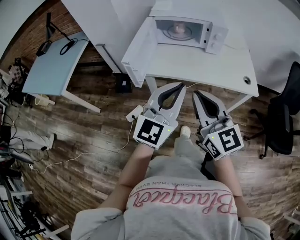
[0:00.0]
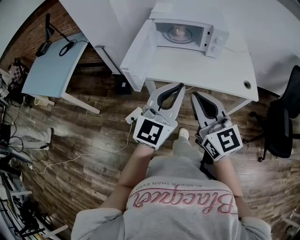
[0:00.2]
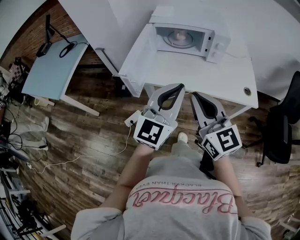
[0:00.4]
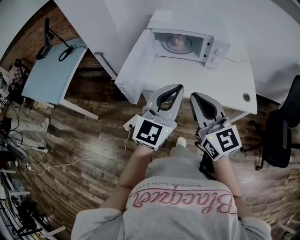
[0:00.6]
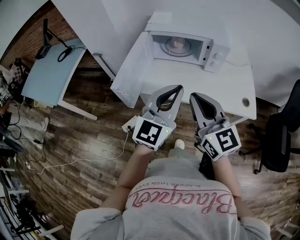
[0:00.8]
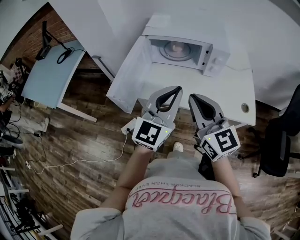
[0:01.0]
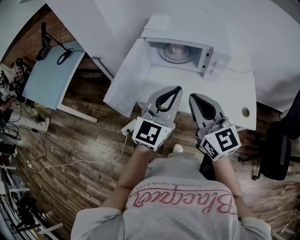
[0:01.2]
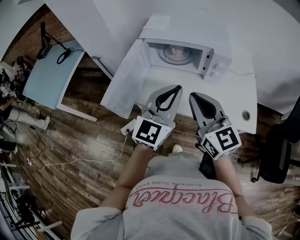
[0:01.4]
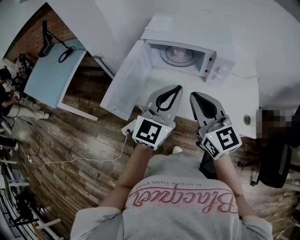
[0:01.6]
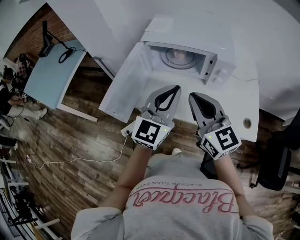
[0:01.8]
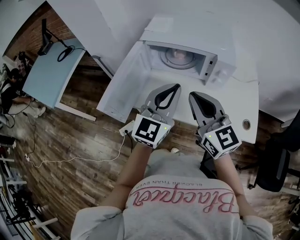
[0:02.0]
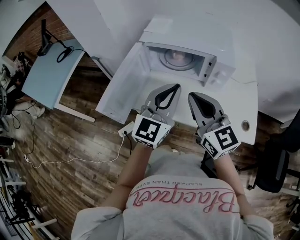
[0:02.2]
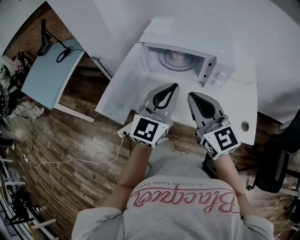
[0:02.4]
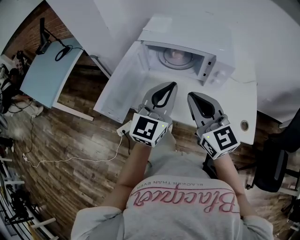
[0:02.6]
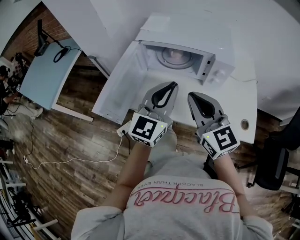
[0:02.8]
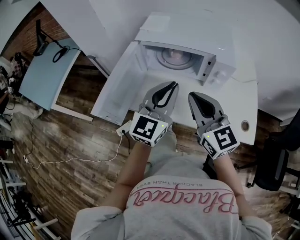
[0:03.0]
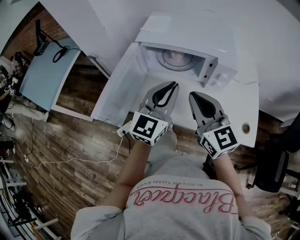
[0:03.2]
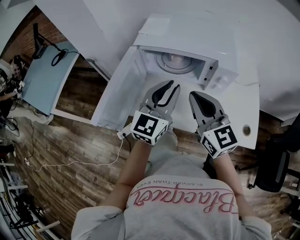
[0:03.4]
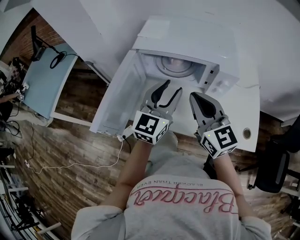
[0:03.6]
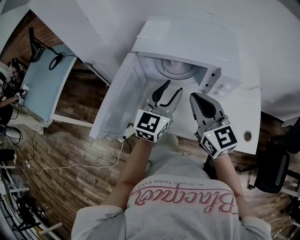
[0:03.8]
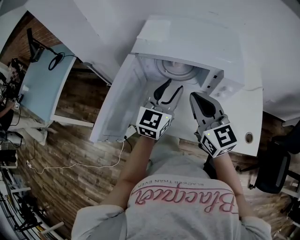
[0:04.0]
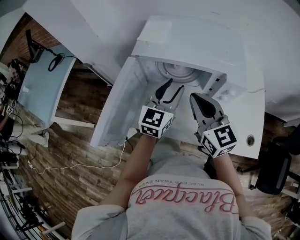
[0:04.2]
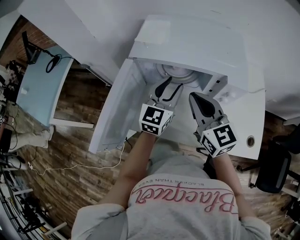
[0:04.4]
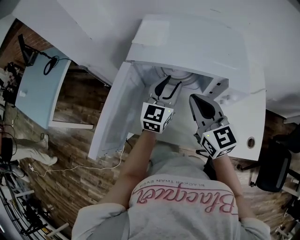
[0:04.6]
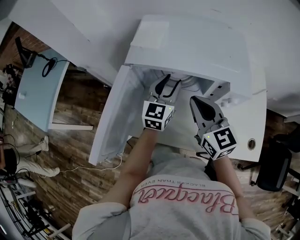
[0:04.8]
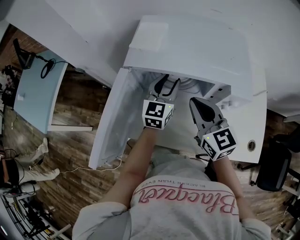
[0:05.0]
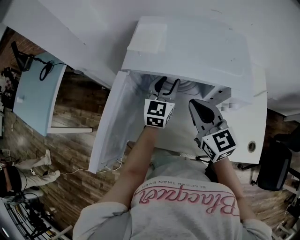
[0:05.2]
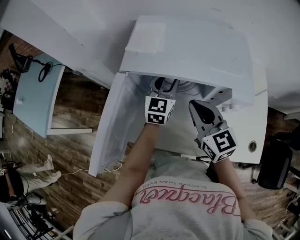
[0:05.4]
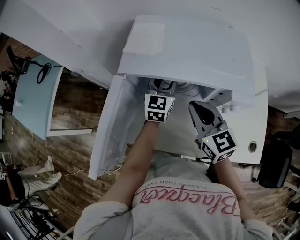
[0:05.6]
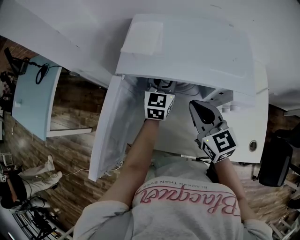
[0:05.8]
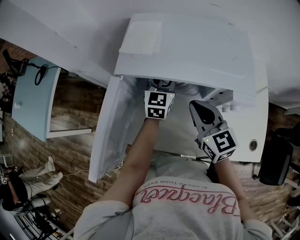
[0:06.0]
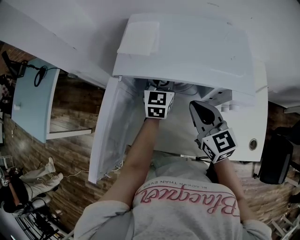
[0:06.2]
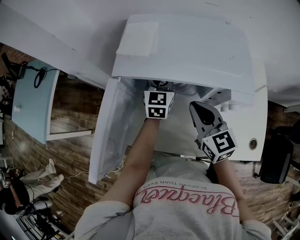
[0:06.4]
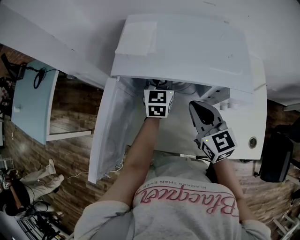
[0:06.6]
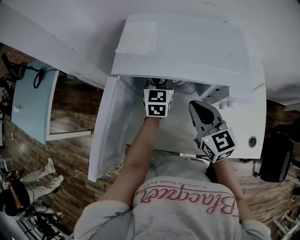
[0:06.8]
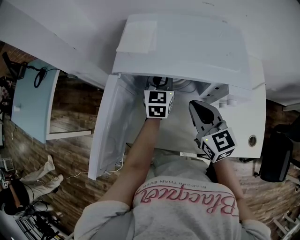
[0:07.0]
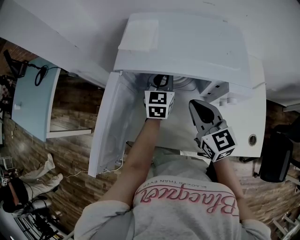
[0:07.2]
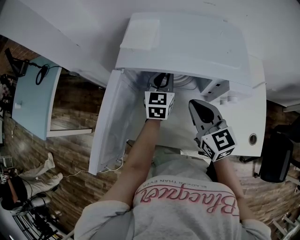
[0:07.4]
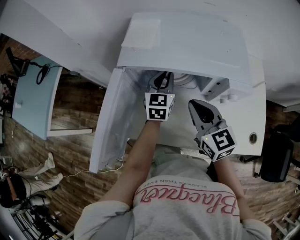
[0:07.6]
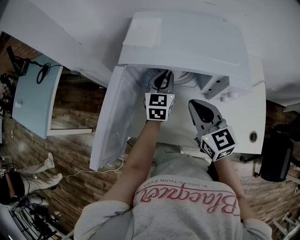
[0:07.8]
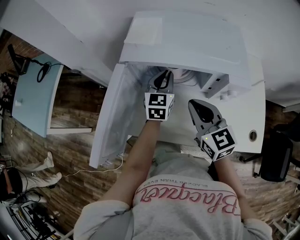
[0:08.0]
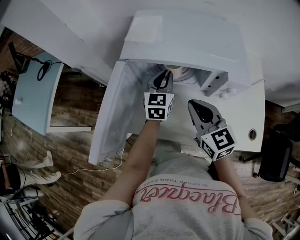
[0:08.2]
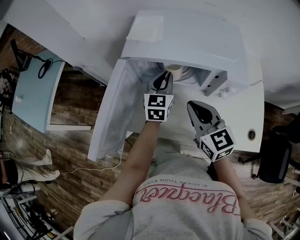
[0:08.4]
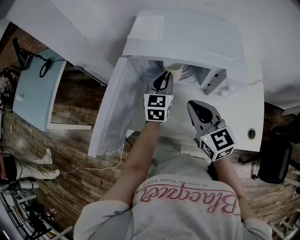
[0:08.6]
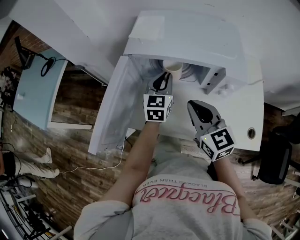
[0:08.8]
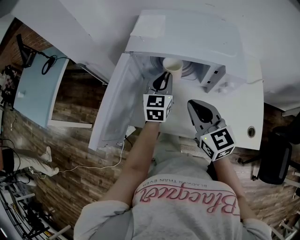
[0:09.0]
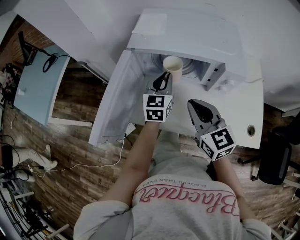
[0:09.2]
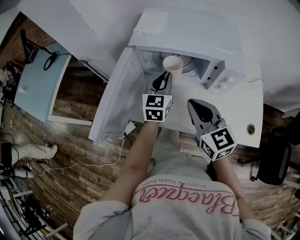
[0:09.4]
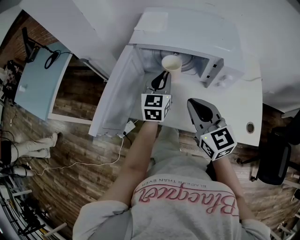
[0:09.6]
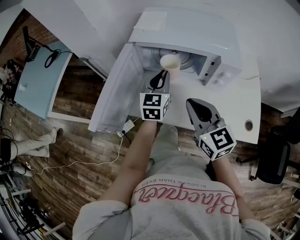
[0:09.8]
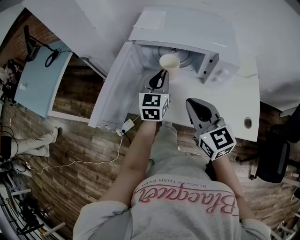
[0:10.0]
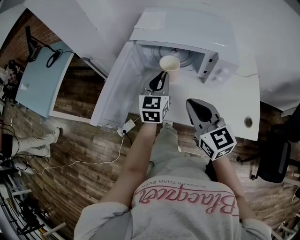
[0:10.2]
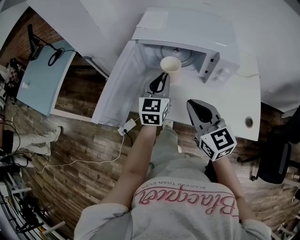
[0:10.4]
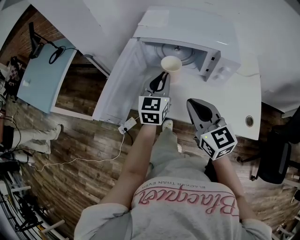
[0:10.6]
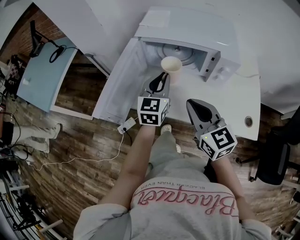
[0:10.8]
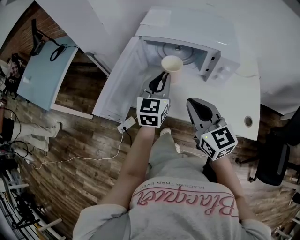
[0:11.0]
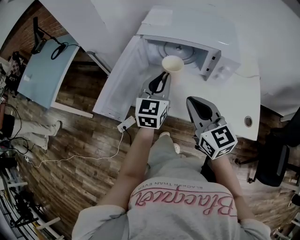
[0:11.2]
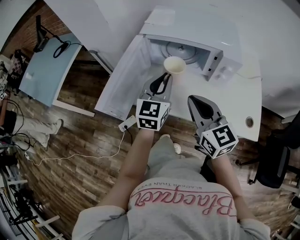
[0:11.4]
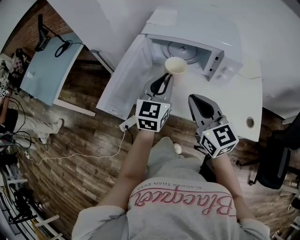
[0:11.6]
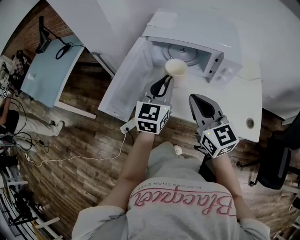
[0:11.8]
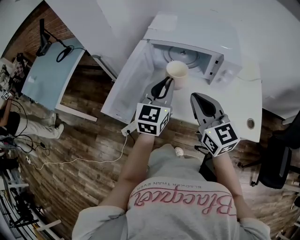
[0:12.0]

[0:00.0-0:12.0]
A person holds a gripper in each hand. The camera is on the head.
0:00.0 to 0:01.6: Both grippers move forward, roughly 25 cm.
0:01.6 to 0:03.0: The left gripper shifts about 5 cm forward.
0:03.0 to 0:04.4: The right gripper shifts roughly 15 cm forward, while the left gripper heads forward and downward, covering some 20 cm, and opens its fingers.
0:04.4 to 0:06.0: The right gripper travels downward and forward by about 10 cm. The left gripper moves forward and downward, roughly 15 cm.
0:06.0 to 0:07.6: The left gripper closes up.
0:07.6 to 0:09.0: Both grippers travel together backward, some 5 cm.
0:09.0 to 0:10.4: The grippers both shift backward by roughly 10 cm.
0:10.4 to 0:12.0: The left gripper heads backward and upward, covering about 10 cm.

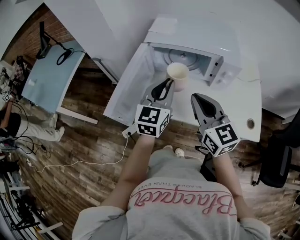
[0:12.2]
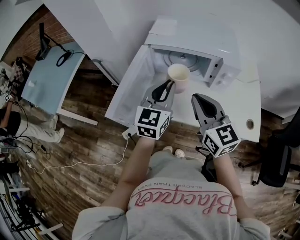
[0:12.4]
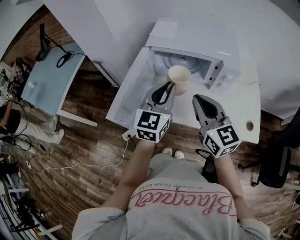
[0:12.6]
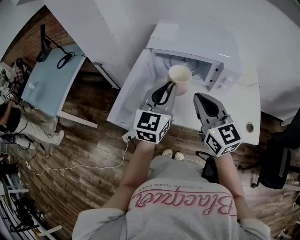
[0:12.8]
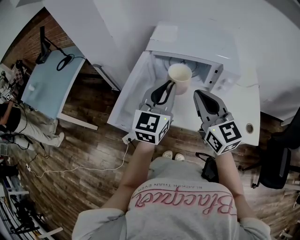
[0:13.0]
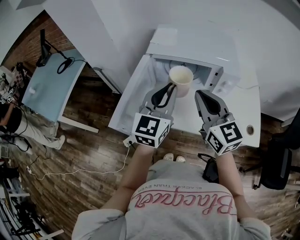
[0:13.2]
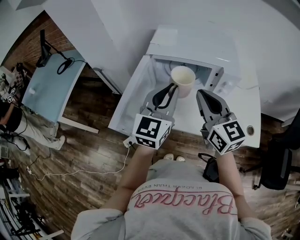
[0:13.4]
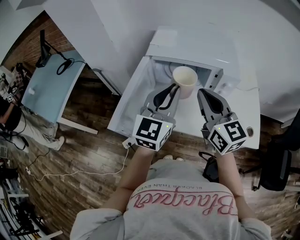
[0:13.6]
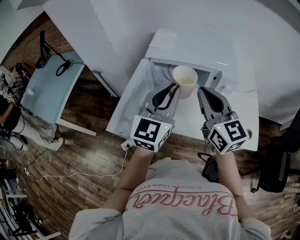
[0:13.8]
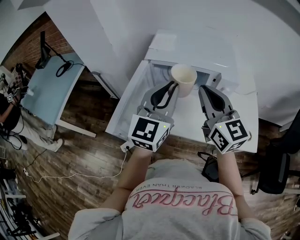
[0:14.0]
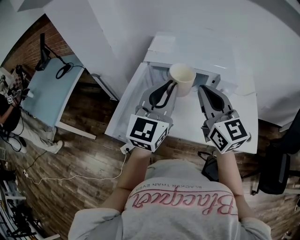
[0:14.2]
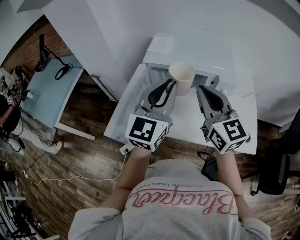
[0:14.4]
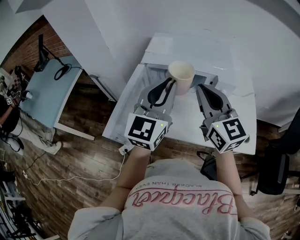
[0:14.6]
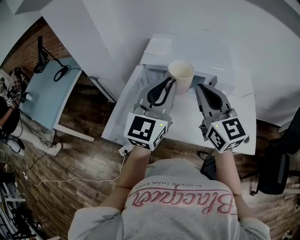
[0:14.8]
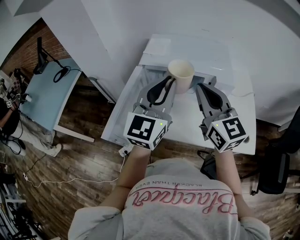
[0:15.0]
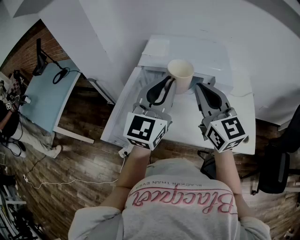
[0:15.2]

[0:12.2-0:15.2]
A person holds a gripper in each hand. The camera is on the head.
0:12.2 to 0:13.8: Both grippers travel together upward, about 10 cm.
0:13.8 to 0:15.2: The left gripper moves roughly 5 cm.

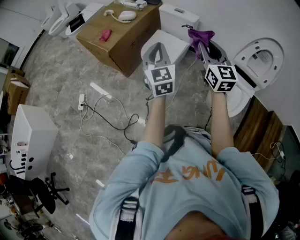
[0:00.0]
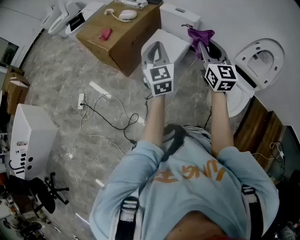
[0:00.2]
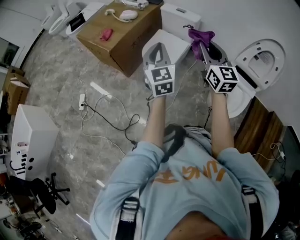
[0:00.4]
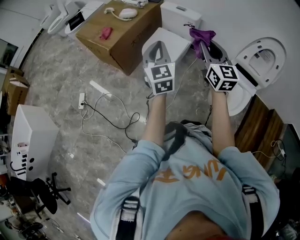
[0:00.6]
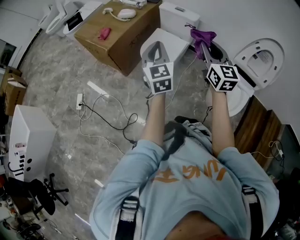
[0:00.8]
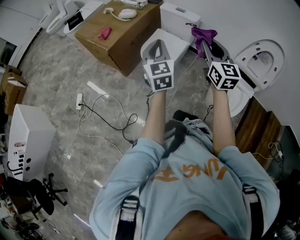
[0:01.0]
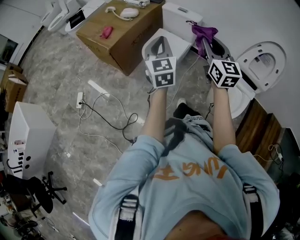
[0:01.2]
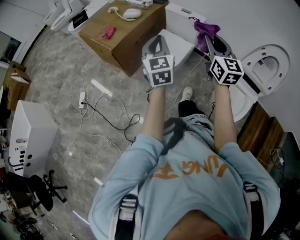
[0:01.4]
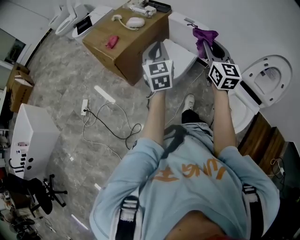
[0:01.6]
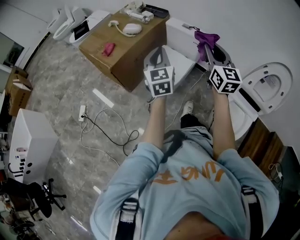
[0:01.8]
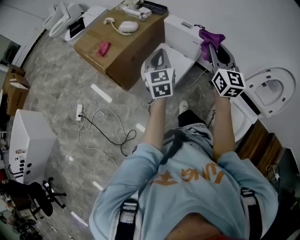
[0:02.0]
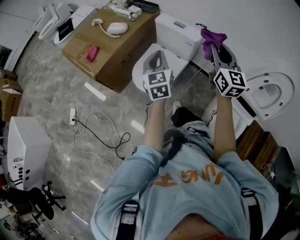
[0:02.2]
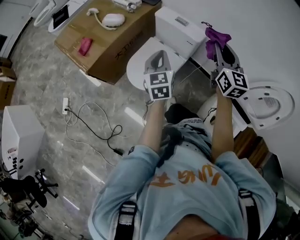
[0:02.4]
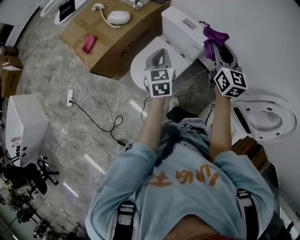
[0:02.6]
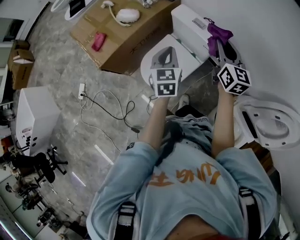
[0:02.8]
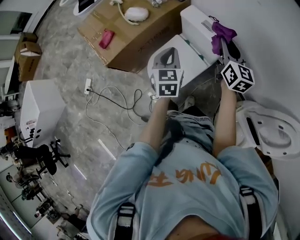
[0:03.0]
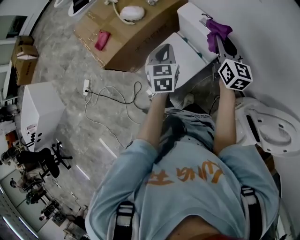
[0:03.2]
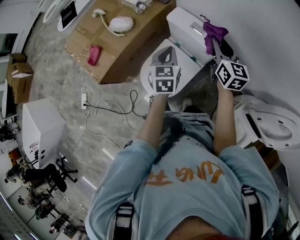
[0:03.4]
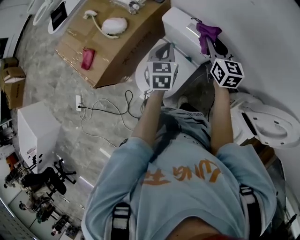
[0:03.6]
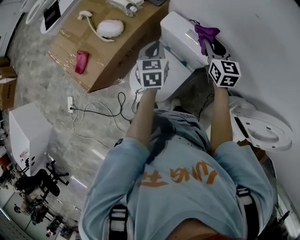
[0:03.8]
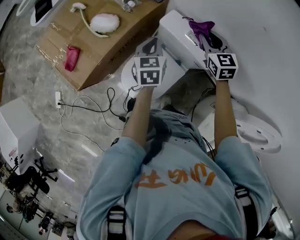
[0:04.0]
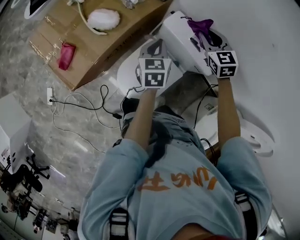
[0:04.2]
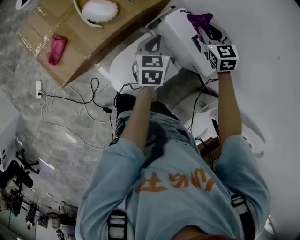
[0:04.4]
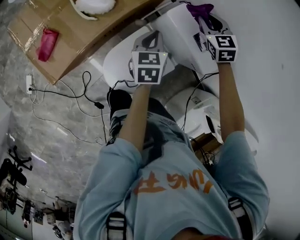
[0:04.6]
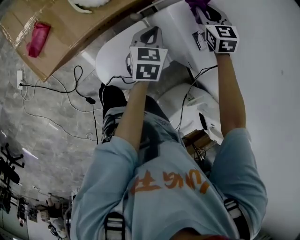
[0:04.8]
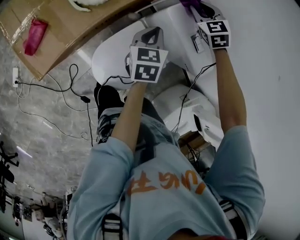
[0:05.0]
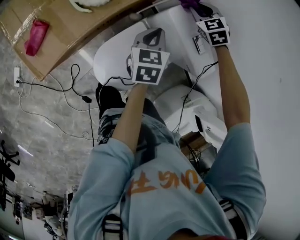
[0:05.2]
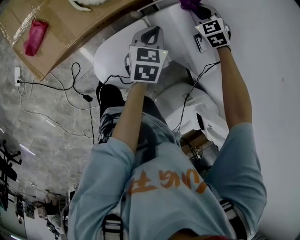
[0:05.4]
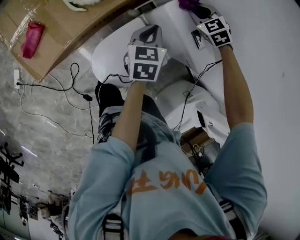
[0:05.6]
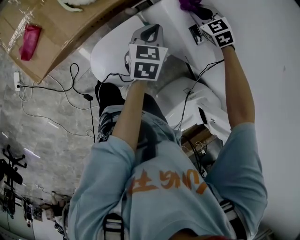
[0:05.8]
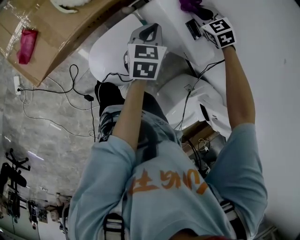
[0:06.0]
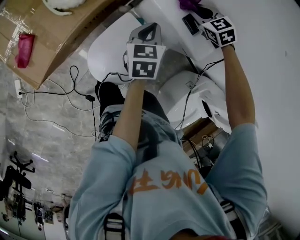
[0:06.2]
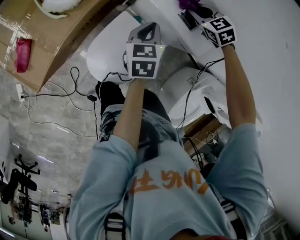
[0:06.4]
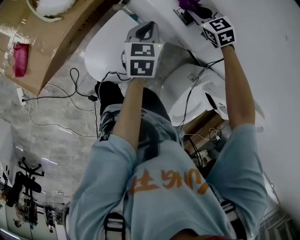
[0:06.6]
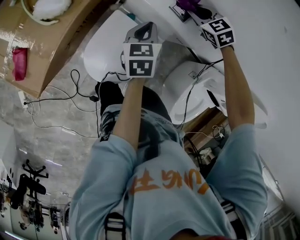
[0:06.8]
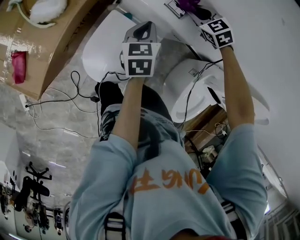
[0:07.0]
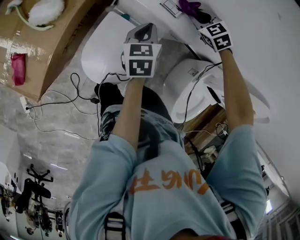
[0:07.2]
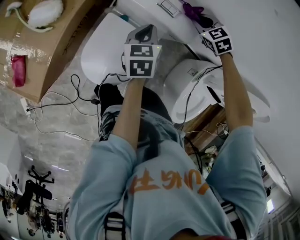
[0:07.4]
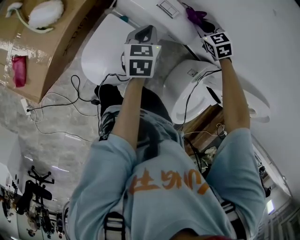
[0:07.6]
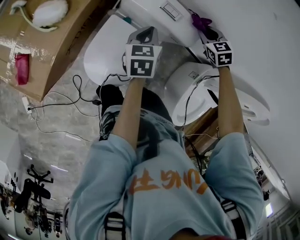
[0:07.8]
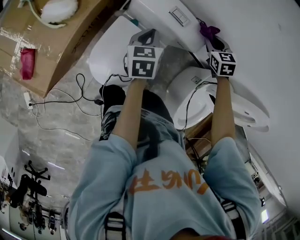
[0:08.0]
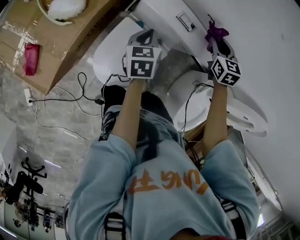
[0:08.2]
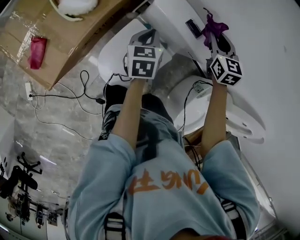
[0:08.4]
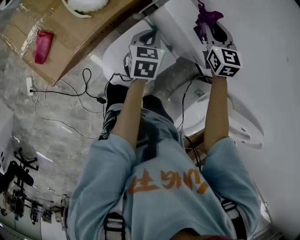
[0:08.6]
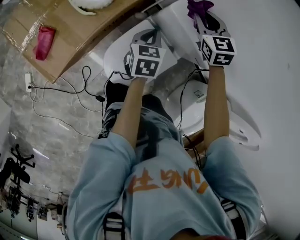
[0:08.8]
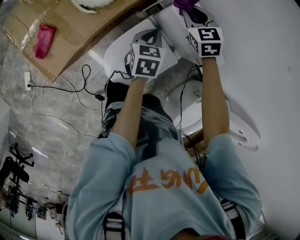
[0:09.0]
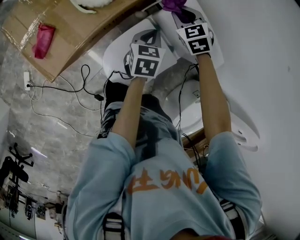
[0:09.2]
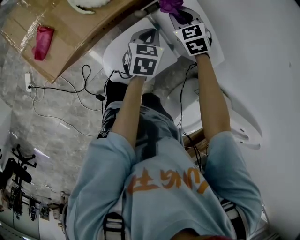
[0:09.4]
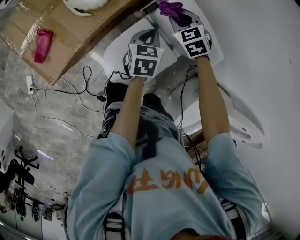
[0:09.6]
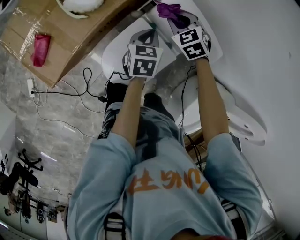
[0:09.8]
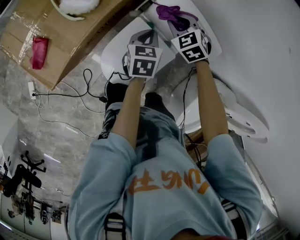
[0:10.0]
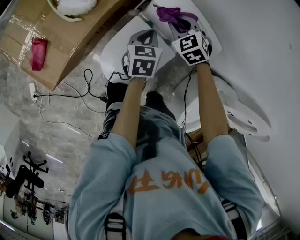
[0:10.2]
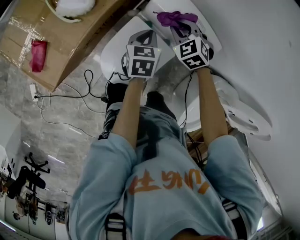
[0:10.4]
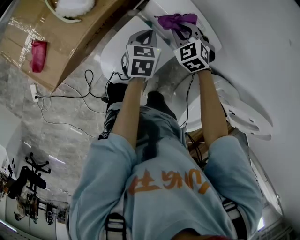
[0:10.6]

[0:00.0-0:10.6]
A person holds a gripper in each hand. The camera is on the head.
0:00.0 to 0:01.6: Both grippers move forward, approximately 10 cm.
0:01.6 to 0:03.0: The right gripper goes about 40 cm forward, and turns by approximately 20 degrees, while the left gripper heads forward, downward and to the right, covering some 35 cm, and changes its angle by roughly 20 degrees.
0:03.0 to 0:04.6: The grippers both shift forward and downward by roughly 30 cm. The right gripper angles its fingers downward, by approximately 30 degrees, while the left gripper turns by approximately 20 degrees.
0:04.6 to 0:06.0: The left gripper moves about 5 cm. The right gripper moves downward, some 10 cm, and rotates some 20 degrees.
0:06.0 to 0:07.6: The right gripper shifts about 20 cm to the right and backward, and changes its angle by about 20 degrees. Meanwhile the left gripper moves to the right and backward, some 10 cm.
0:07.6 to 0:09.0: The right gripper travels to the left by some 30 cm. The left gripper goes approximately 15 cm to the left.
0:09.0 to 0:10.6: The left gripper moves to the right, about 5 cm, while the right gripper is displaced backward and to the right by about 10 cm.
